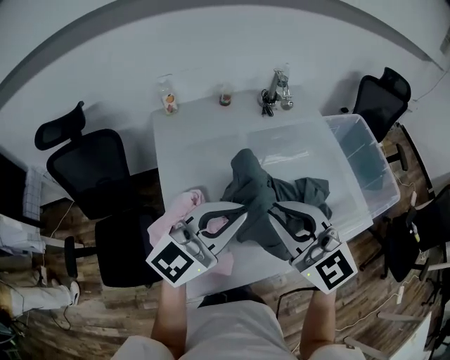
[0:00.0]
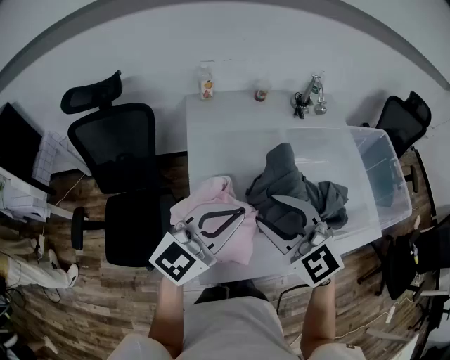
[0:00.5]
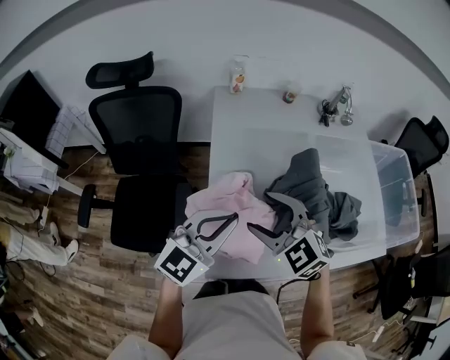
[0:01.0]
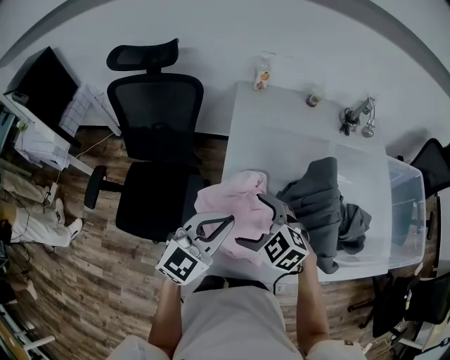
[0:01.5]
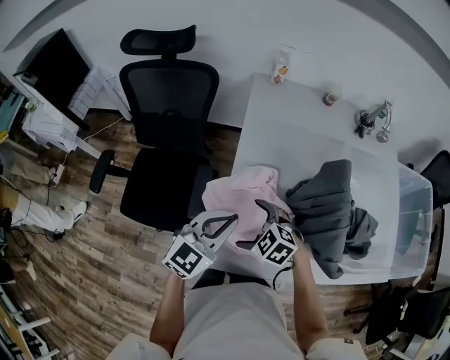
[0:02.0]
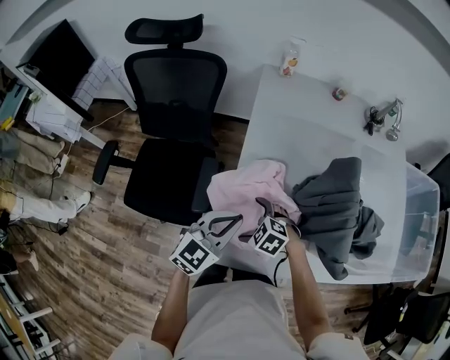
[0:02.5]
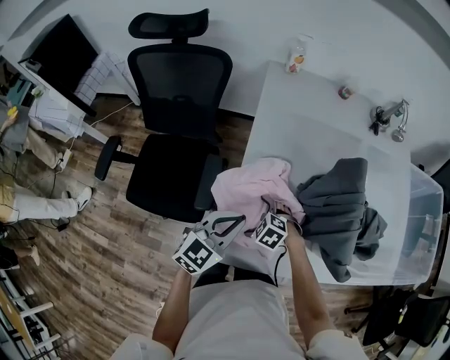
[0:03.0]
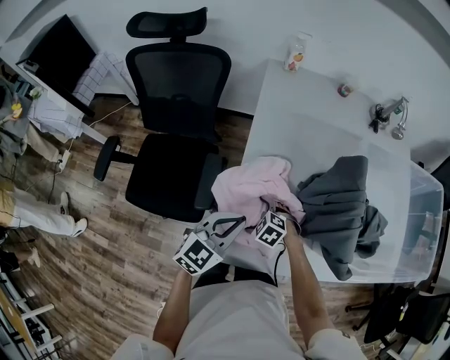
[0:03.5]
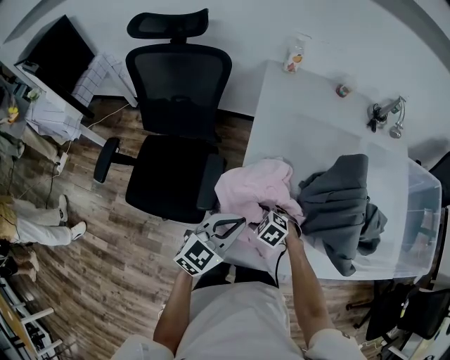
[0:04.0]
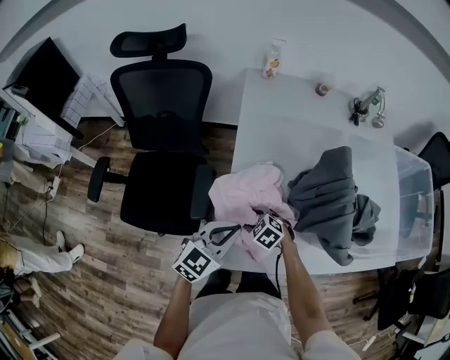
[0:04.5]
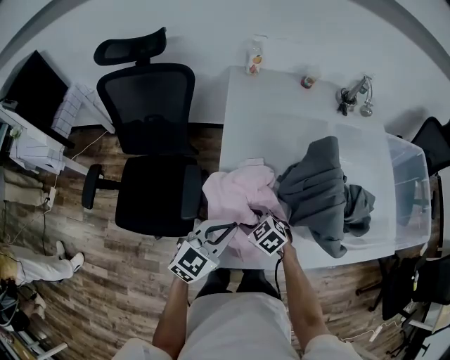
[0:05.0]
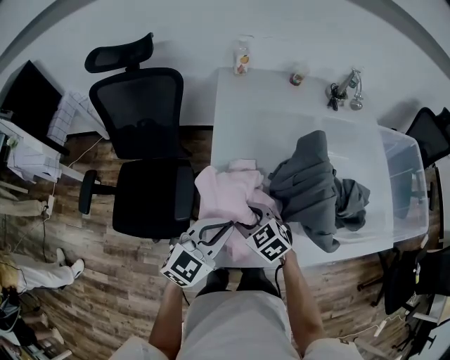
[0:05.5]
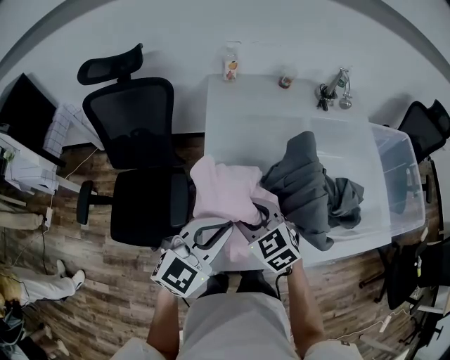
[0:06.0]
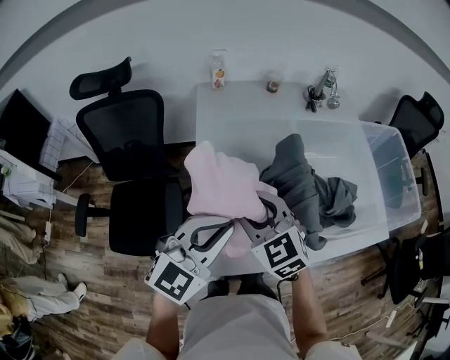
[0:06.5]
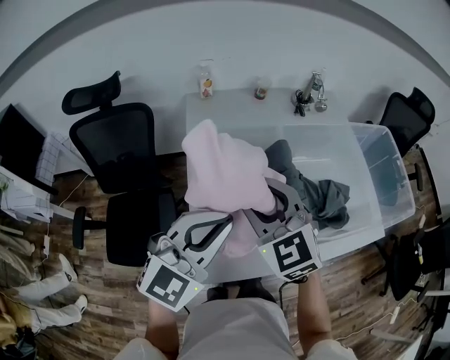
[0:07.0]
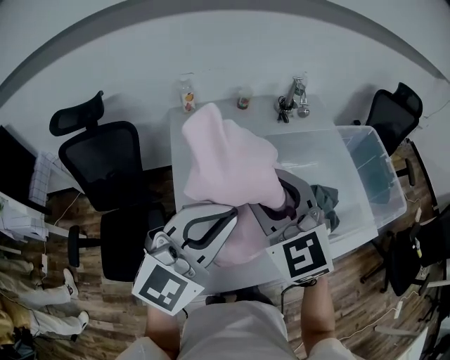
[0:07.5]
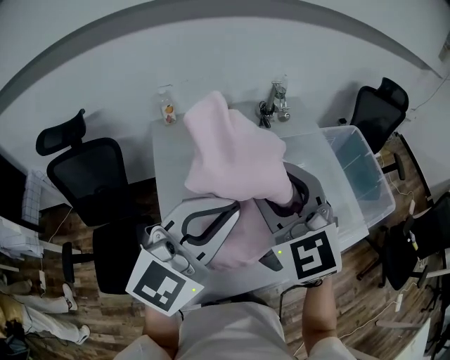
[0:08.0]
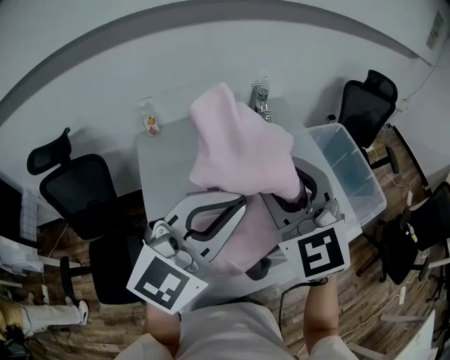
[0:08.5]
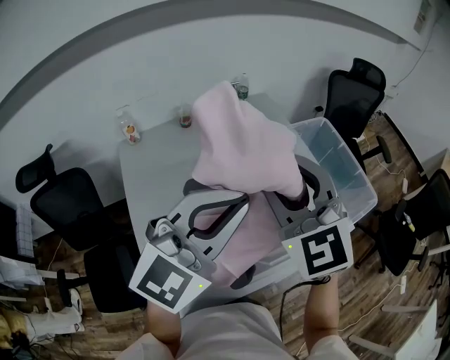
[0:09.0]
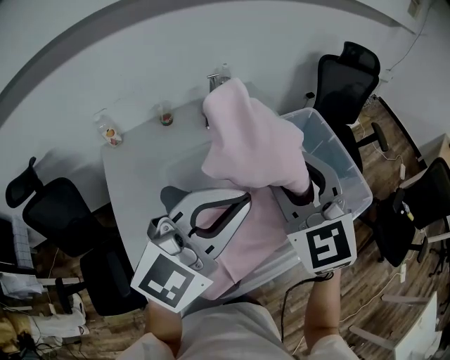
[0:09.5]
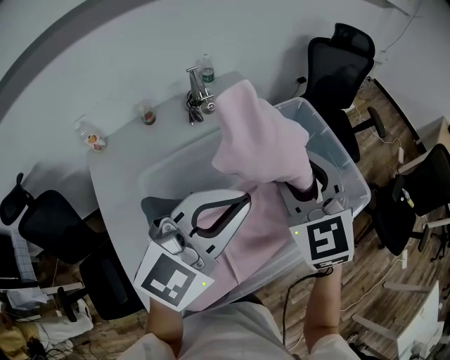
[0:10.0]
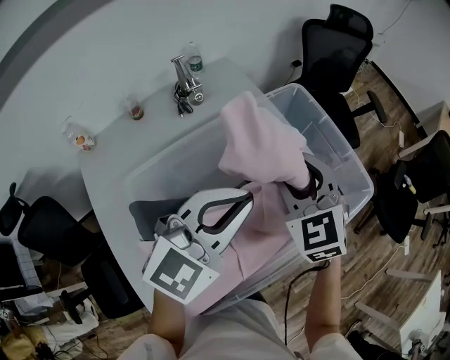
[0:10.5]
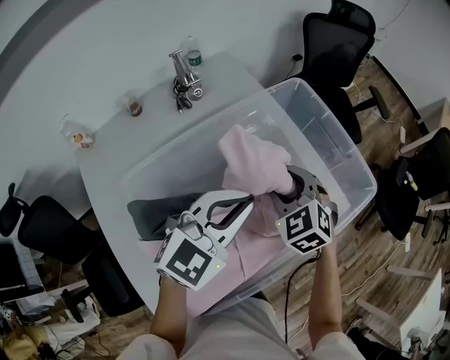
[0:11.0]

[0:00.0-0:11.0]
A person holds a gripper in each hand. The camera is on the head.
0.0 to 2.0 s: The right gripper is displaced downward by some 30 cm, points its fingers approximately 40 degrees further downward, and opens; the left gripper ends up about 25 cm from where it was, and swivels some 30 degrees.
2.0 to 3.5 s: The left gripper shifts some 5 cm downward. Meanwhile the right gripper goes approximately 15 cm downward.
3.5 to 5.5 s: The right gripper moves upward, about 15 cm, turns by roughly 30 degrees, and closes its fingers, while the left gripper travels upward by some 5 cm.
5.5 to 7.5 s: Both grippers move upward, approximately 30 cm. The left gripper turns by approximately 30 degrees. The right gripper turns by approximately 40 degrees.
7.5 to 9.0 s: The grippers both shift to the right and forward by approximately 20 cm.
9.0 to 11.0 s: The two grippers go roughly 30 cm downward, forward and to the right. The right gripper tips its fingers downward by roughly 30 degrees; the left gripper turns by some 20 degrees.

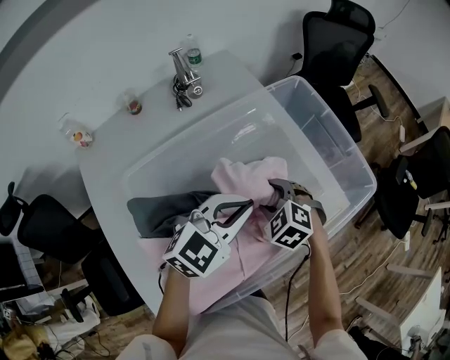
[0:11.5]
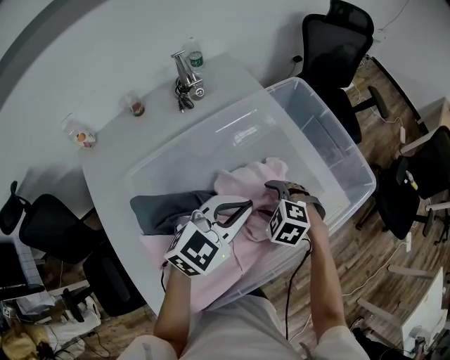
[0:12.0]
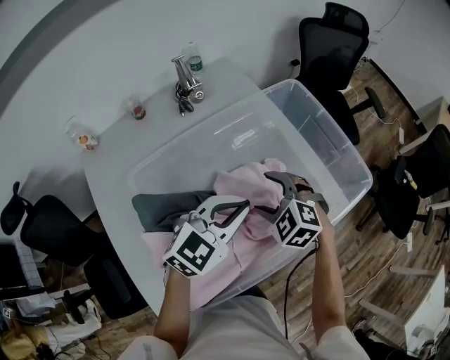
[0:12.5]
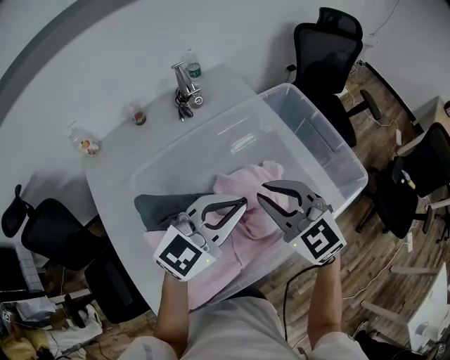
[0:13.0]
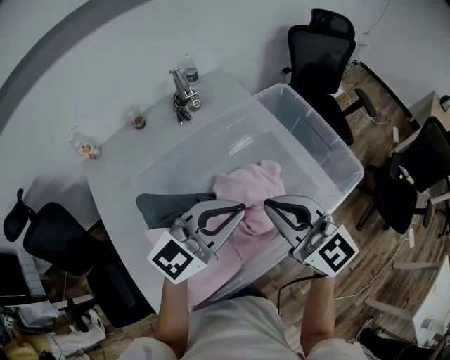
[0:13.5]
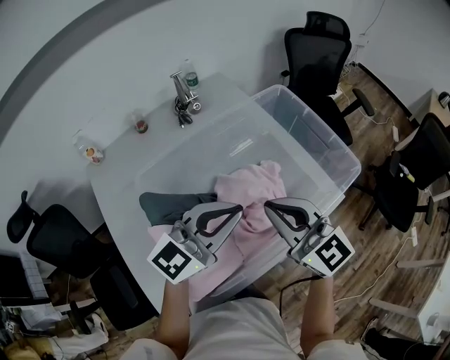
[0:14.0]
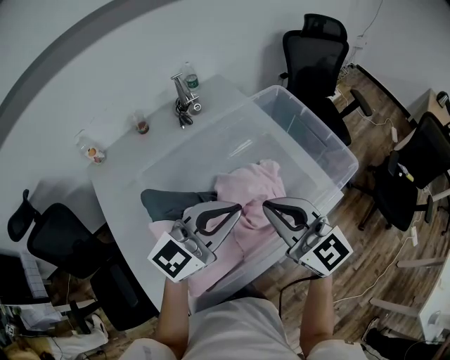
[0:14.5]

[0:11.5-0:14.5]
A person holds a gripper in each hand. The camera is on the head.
11.5 to 13.0 s: The right gripper shifts about 20 cm upward, and tips its fingers upward by roughly 40 degrees. The left gripper goes some 5 cm upward.
13.0 to 14.5 s: The two grippers go roughly 5 cm backward. The right gripper swivels roughly 20 degrees.

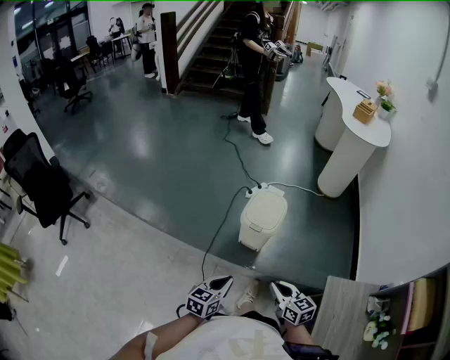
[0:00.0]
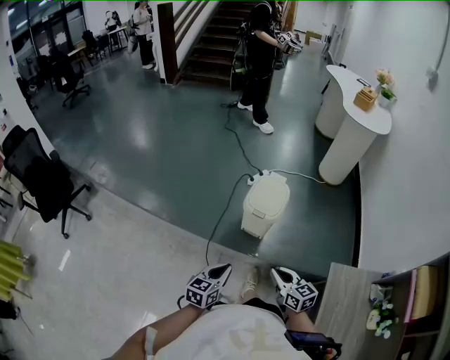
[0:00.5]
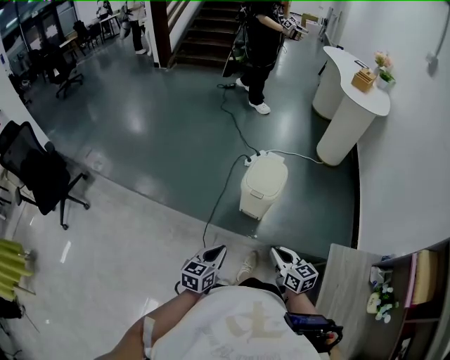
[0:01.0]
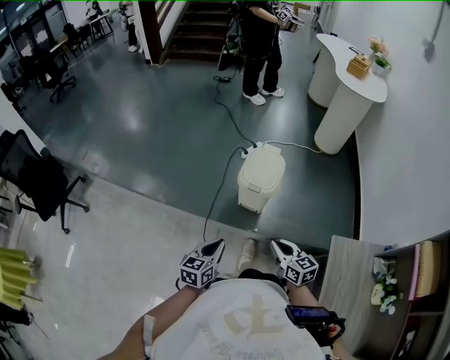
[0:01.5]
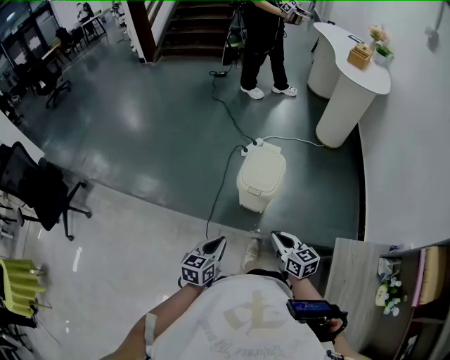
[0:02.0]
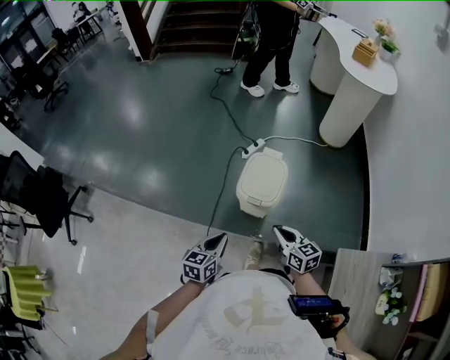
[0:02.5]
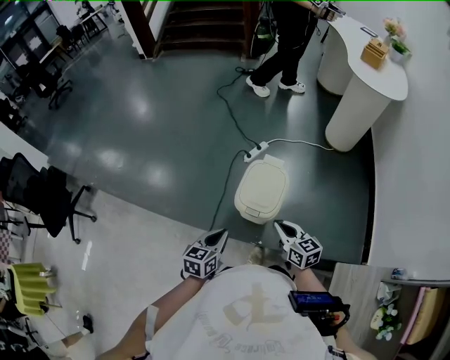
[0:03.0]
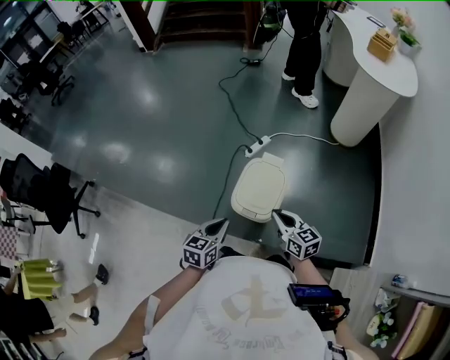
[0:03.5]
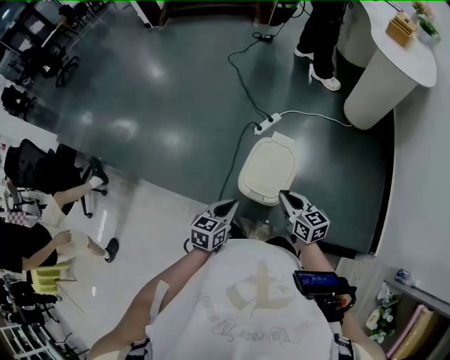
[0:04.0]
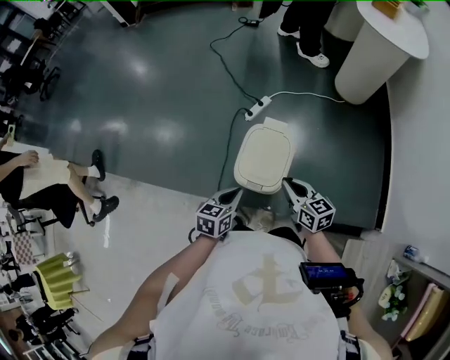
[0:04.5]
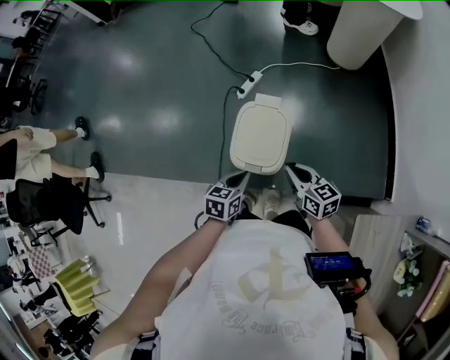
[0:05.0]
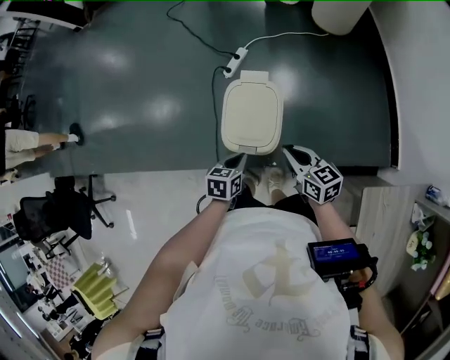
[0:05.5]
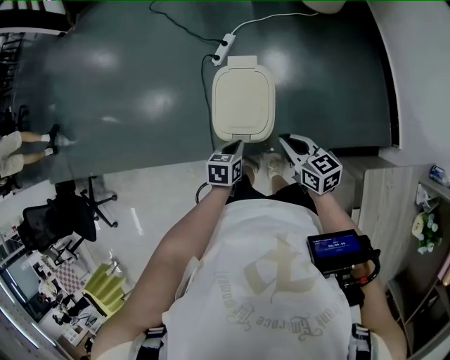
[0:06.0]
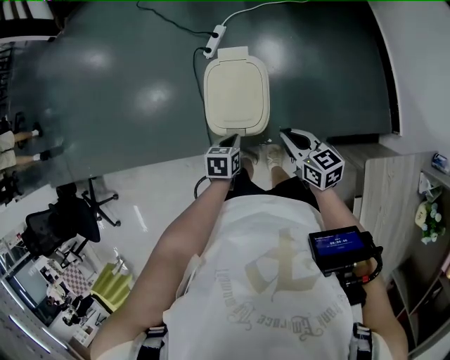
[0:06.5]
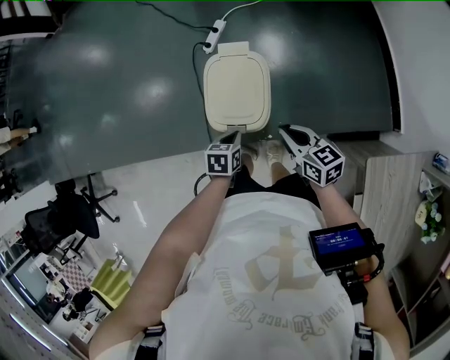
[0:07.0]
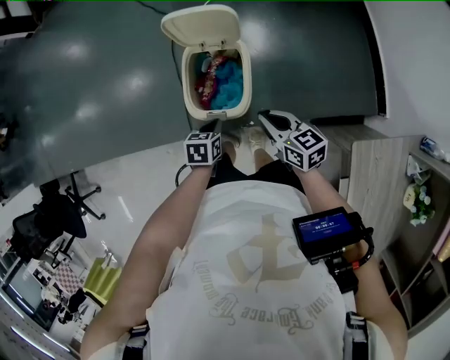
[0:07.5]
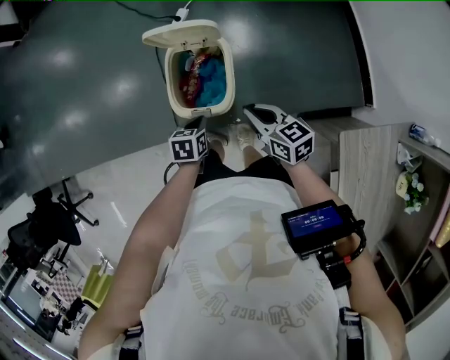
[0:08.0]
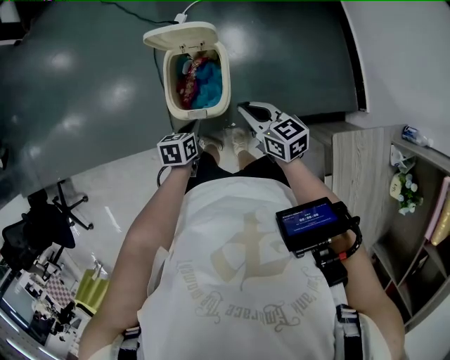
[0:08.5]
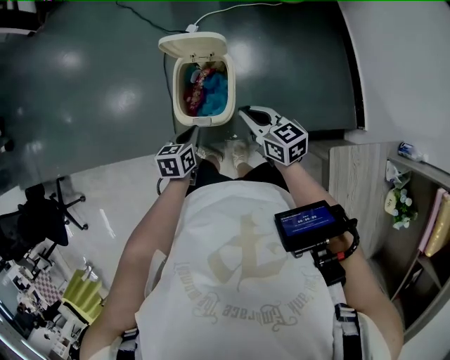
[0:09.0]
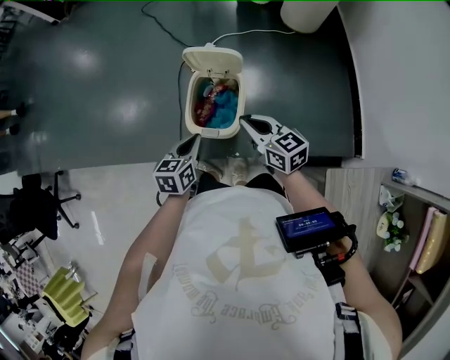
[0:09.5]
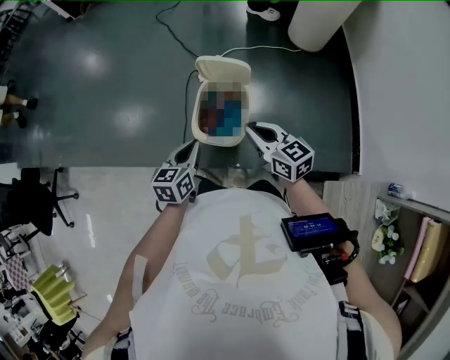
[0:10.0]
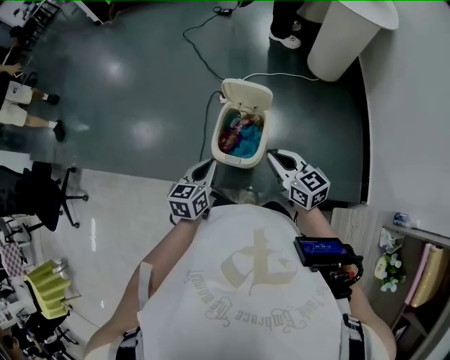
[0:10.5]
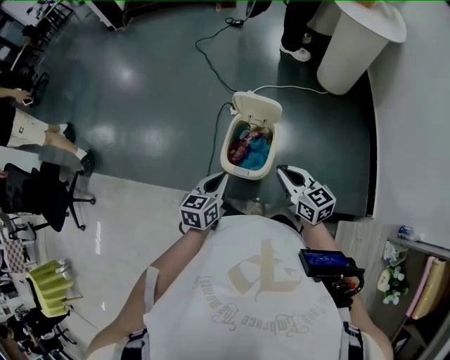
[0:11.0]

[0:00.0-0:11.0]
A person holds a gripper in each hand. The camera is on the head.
0.0 to 2.0 s: The grippers both shift forward by roughly 10 cm.
2.0 to 3.5 s: Both grippers travel together forward, about 25 cm.
3.5 to 5.5 s: The left gripper is displaced downward and to the right by some 15 cm, and changes its angle by approximately 20 degrees; the right gripper is displaced downward by approximately 10 cm.
5.5 to 7.5 s: The left gripper goes approximately 5 cm downward.
7.5 to 9.0 s: The left gripper travels upward by roughly 5 cm.
9.0 to 11.0 s: The left gripper is displaced upward by roughly 15 cm; the right gripper is displaced upward by approximately 10 cm.

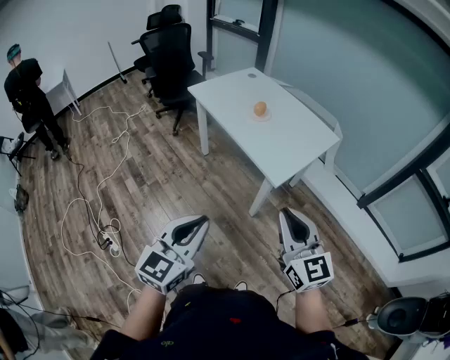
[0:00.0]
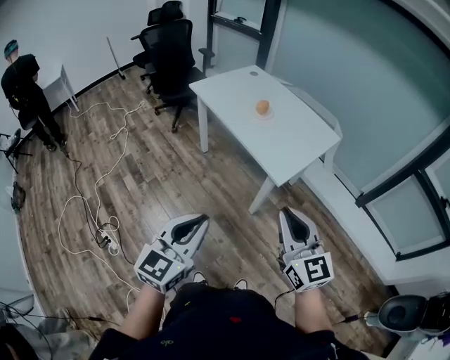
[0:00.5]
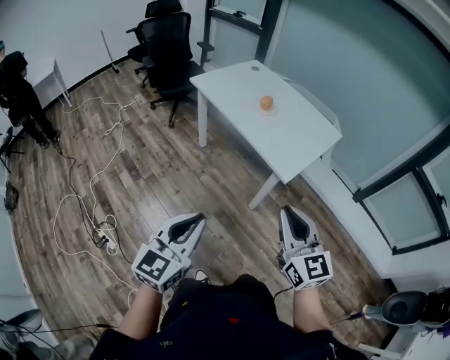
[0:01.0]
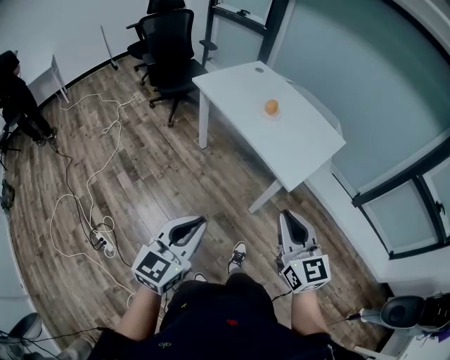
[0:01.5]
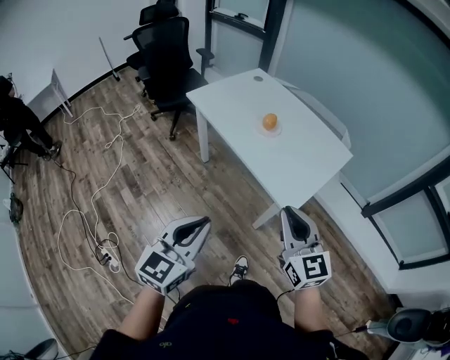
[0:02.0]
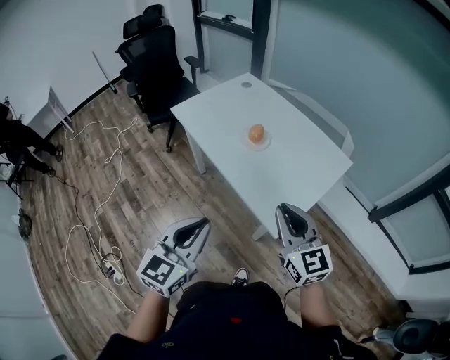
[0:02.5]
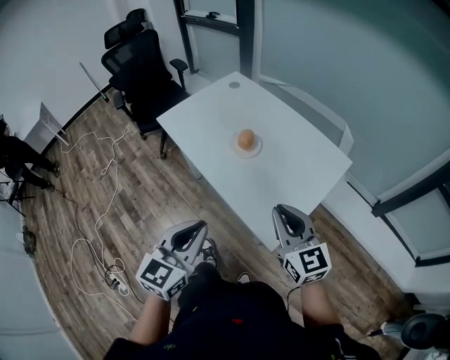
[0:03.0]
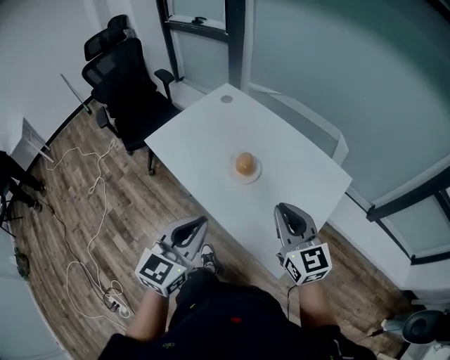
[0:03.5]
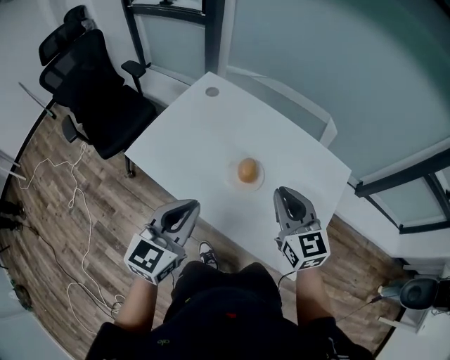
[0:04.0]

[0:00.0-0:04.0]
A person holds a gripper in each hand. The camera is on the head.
0.0 to 2.0 s: The grippers both shift forward by some 20 cm.
2.0 to 4.0 s: The pair of grippers is taken forward, approximately 50 cm.
